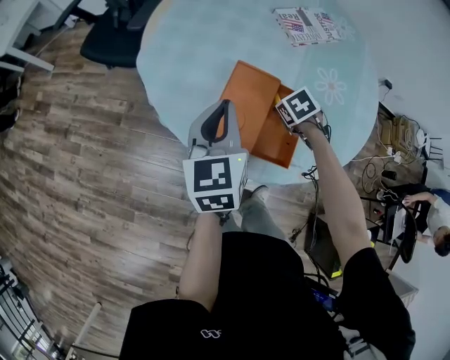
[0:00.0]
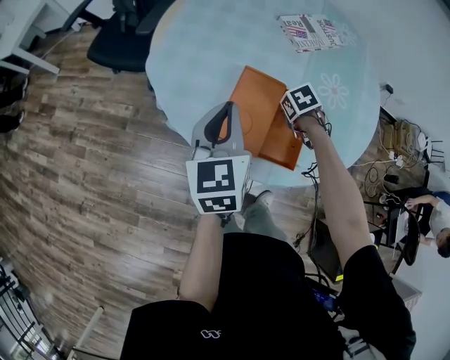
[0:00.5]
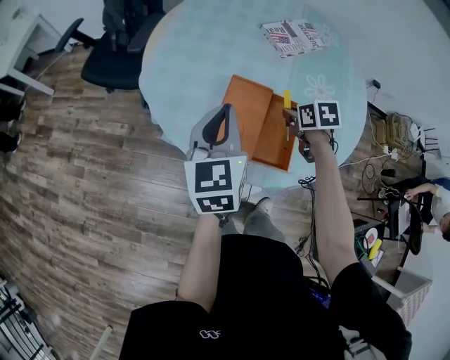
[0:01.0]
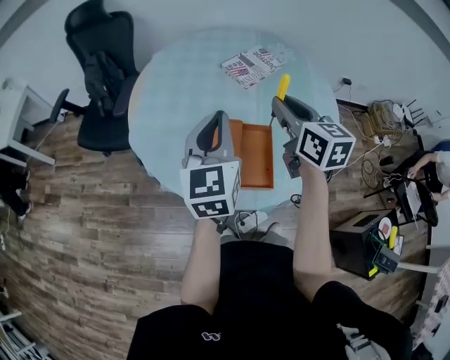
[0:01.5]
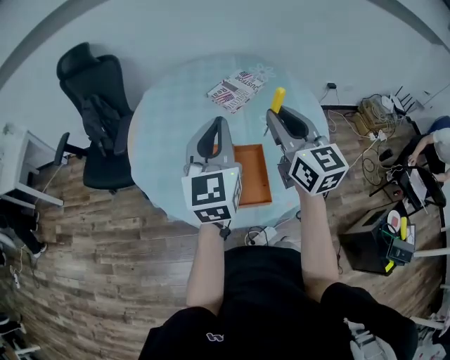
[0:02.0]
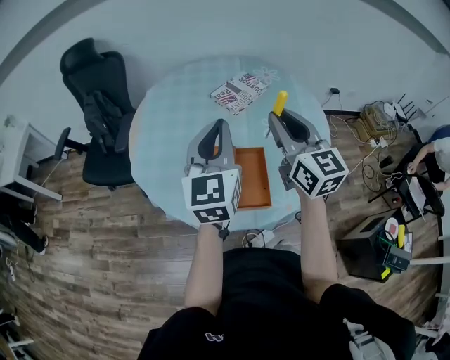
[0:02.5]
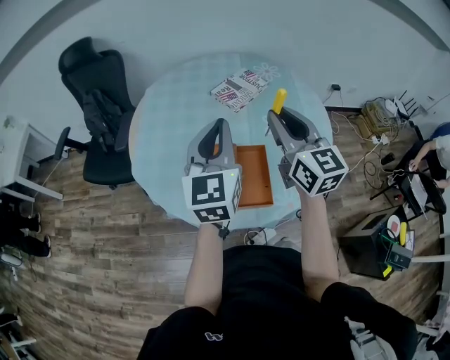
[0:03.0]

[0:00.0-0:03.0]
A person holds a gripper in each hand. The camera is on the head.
0:00.0 to 0:01.5: The right gripper travels upward by approximately 35 cm, and tips its fingers upward by roughly 60 degrees. Meanwhile the left gripper heads upward, covering about 15 cm, and changes its angle by roughly 20 degrees.
0:01.5 to 0:03.0: The left gripper ends up roughly 5 cm from where it was; the right gripper travels upward by about 5 cm.

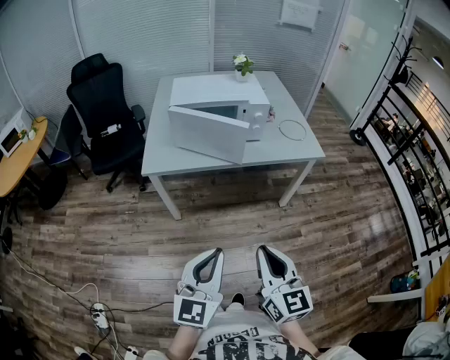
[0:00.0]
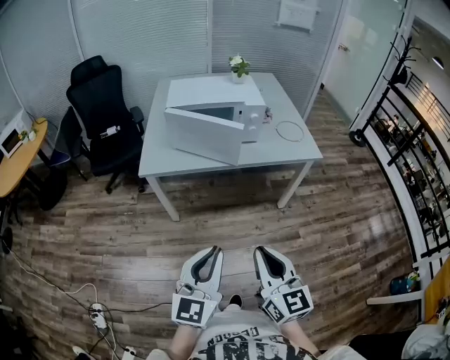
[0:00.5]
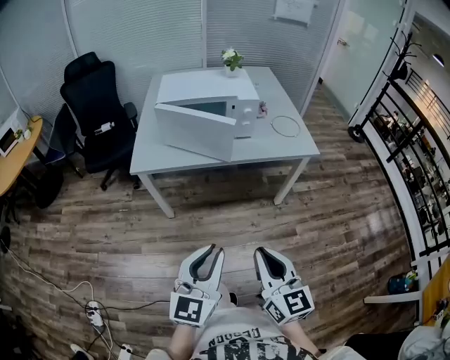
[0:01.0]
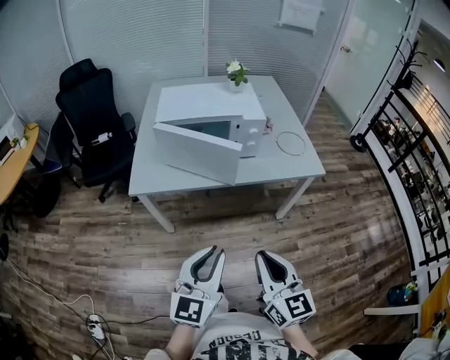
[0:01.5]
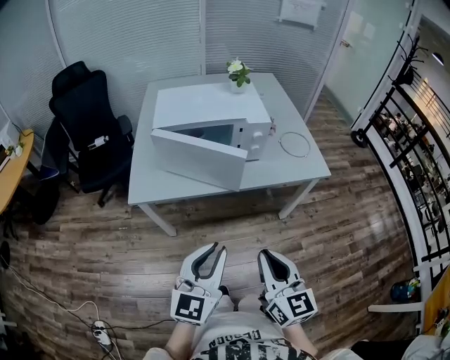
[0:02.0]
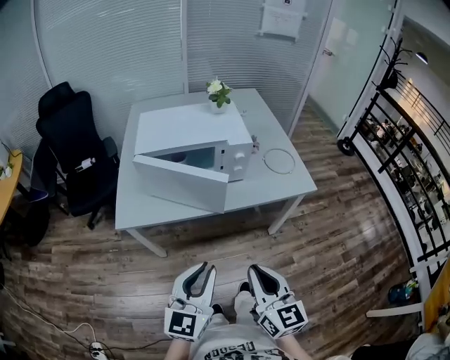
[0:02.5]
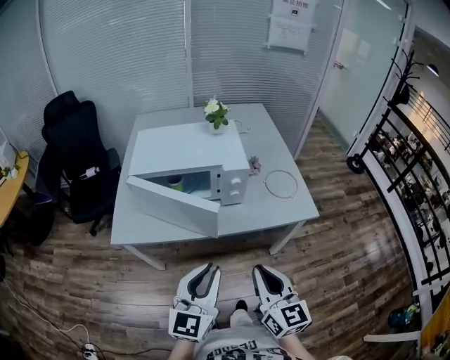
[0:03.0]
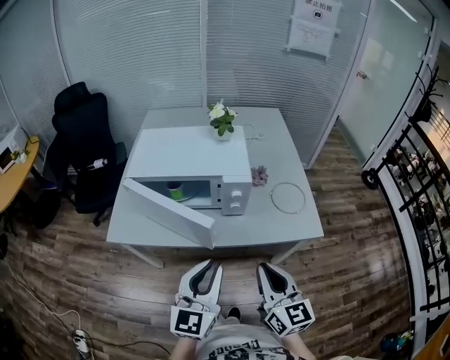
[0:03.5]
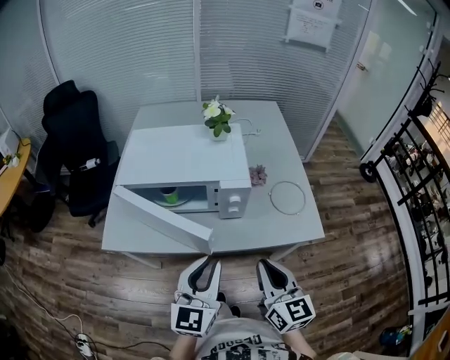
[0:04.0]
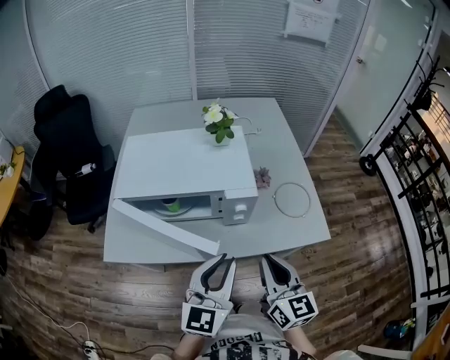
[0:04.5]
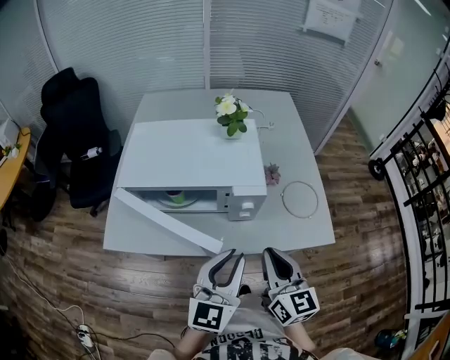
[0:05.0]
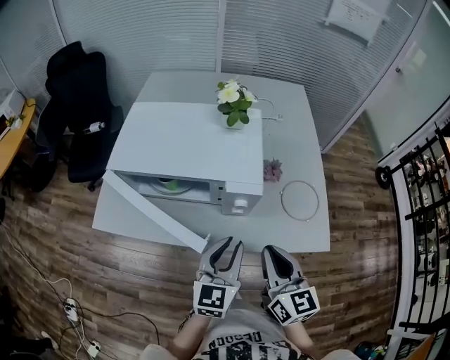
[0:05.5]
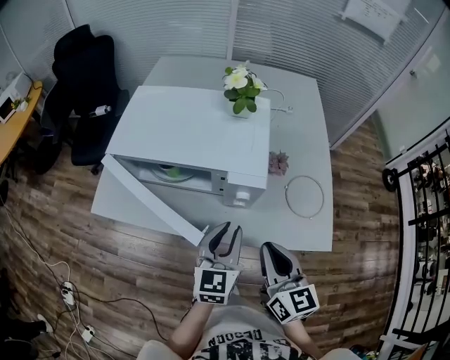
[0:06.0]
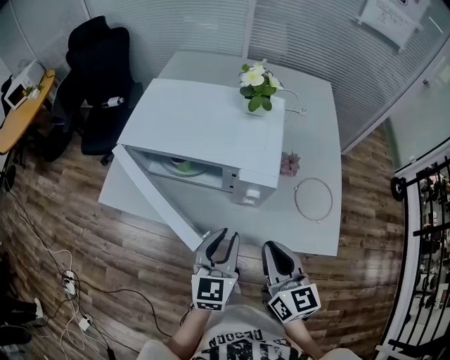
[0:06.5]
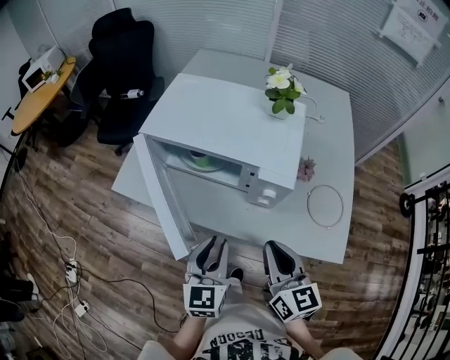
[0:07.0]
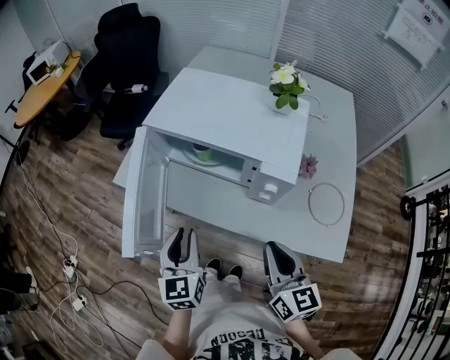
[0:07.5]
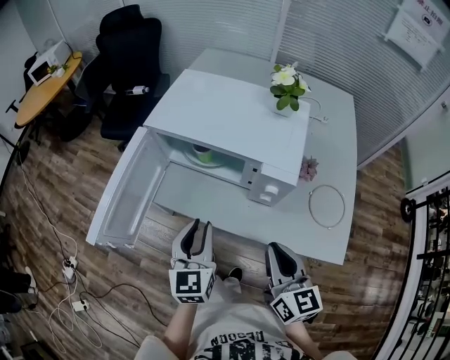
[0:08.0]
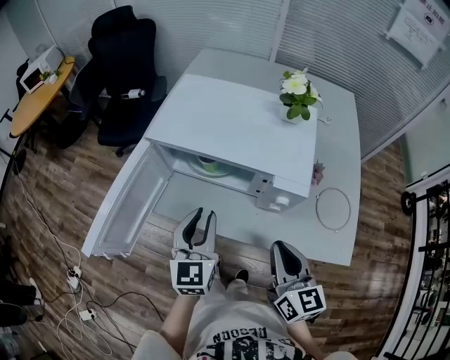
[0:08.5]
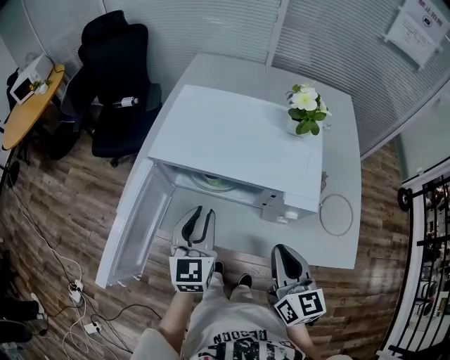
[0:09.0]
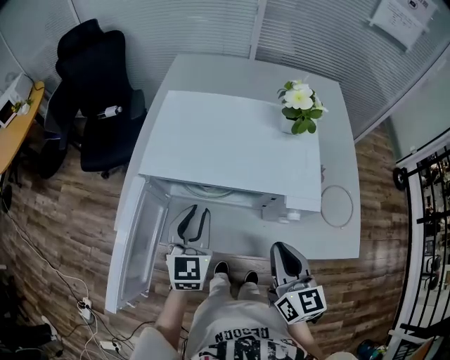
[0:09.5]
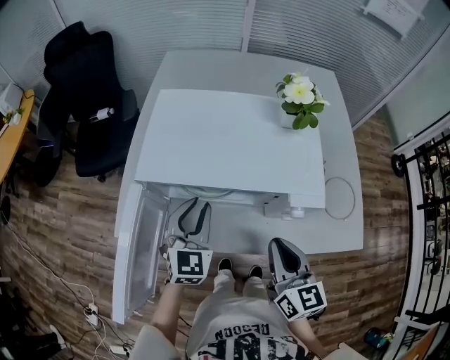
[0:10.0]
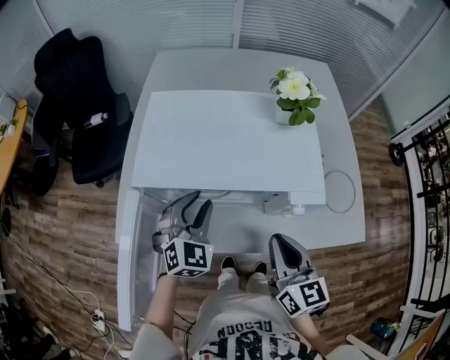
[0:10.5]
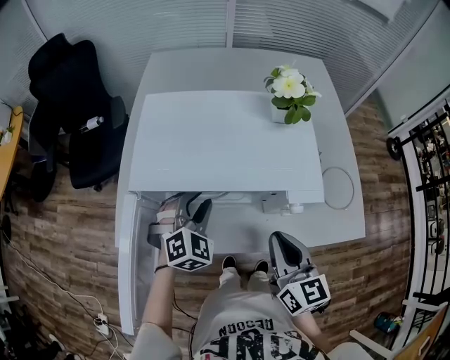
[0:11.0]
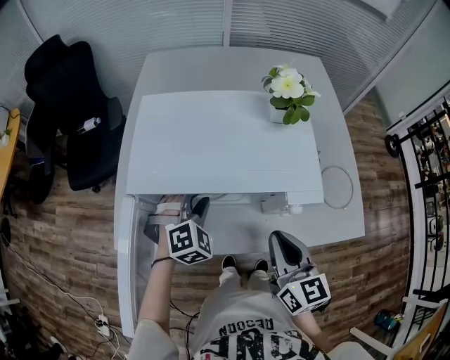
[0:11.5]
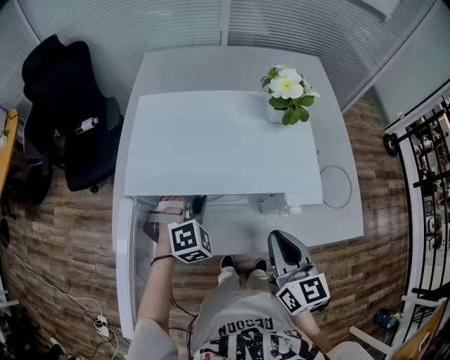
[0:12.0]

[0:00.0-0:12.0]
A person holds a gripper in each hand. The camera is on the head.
0:00.0 to 0:02.0: Both grippers travel together forward, about 15 cm.
0:02.0 to 0:04.0: The grippers both shift forward and to the right by about 25 cm.
0:04.0 to 0:06.0: The right gripper shifts roughly 10 cm forward; the left gripper goes some 15 cm forward, downward and to the right.
0:06.0 to 0:08.0: The left gripper moves to the left, roughly 15 cm, and turns by approximately 20 degrees.
0:08.0 to 0:10.0: The left gripper is displaced forward by approximately 15 cm, and turns by about 30 degrees, while the right gripper travels forward and to the left by roughly 10 cm.
0:10.0 to 0:12.0: The left gripper goes about 5 cm downward, and twists roughly 50 degrees clockwise, seen from behind.

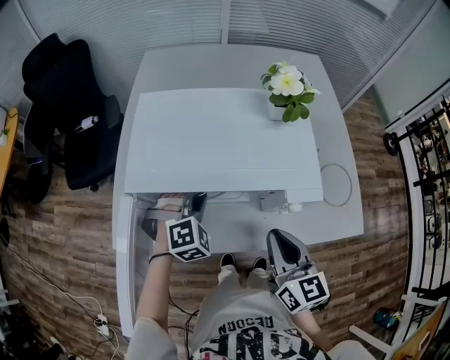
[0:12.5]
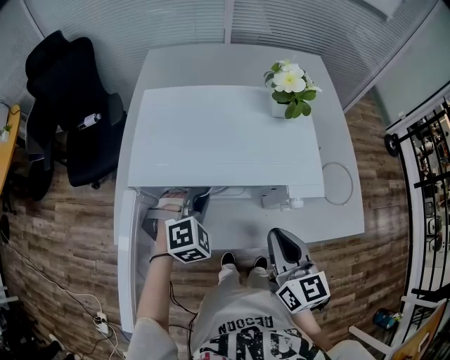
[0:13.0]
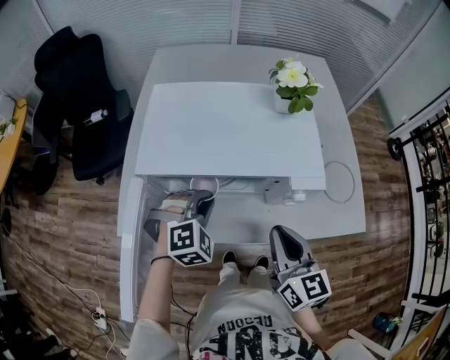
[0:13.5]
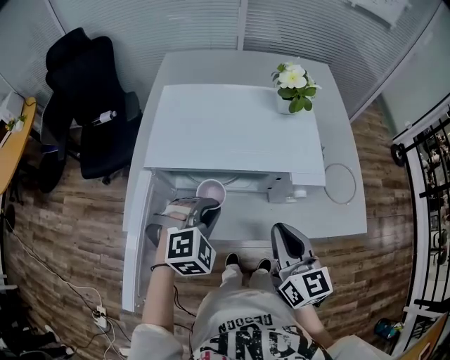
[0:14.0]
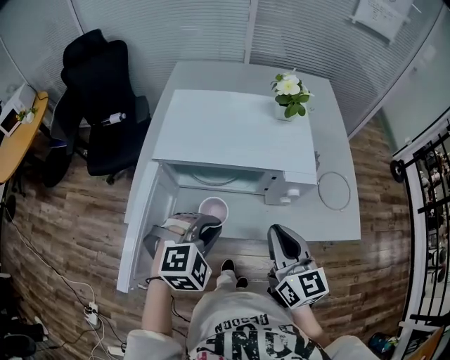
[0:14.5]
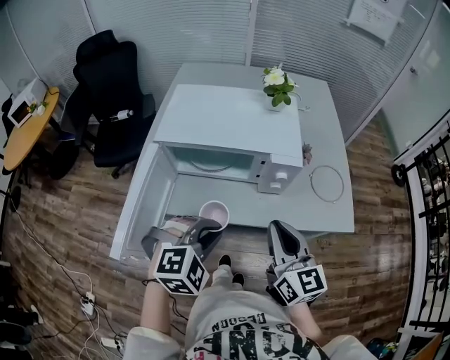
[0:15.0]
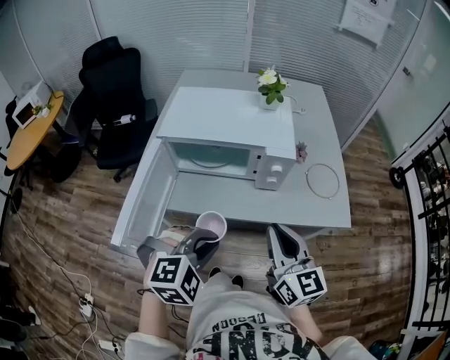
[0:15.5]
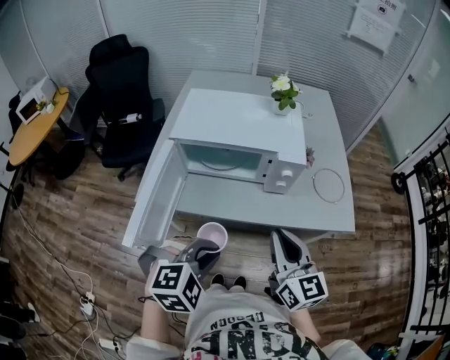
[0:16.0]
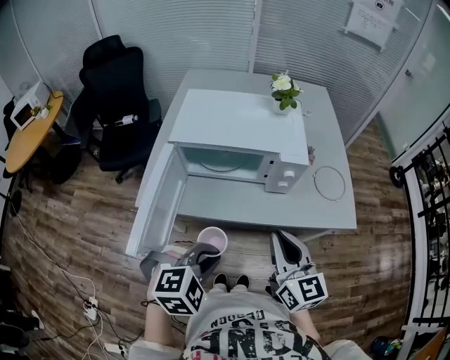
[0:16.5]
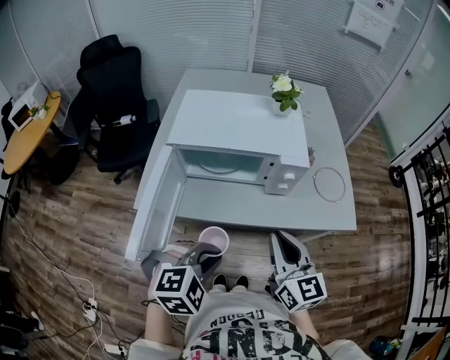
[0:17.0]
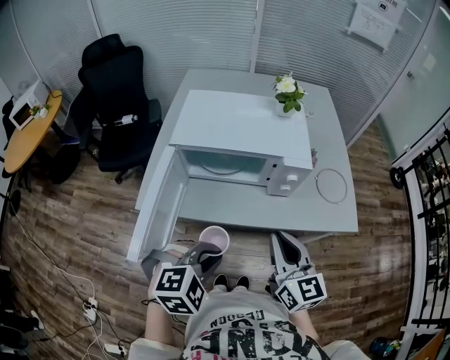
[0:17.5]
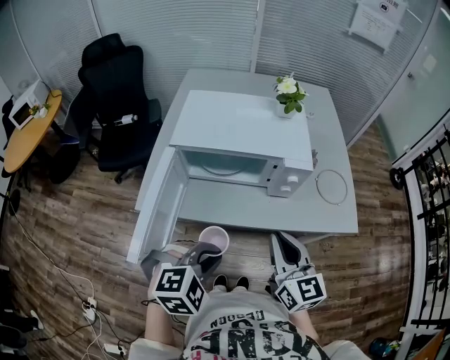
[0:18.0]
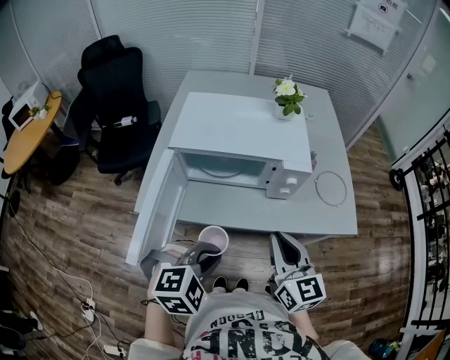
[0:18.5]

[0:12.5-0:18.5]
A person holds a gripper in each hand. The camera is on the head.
0:12.5 to 0:14.5: The left gripper goes about 20 cm backward and upward; the right gripper moves backward, about 5 cm.
0:14.5 to 0:16.5: The left gripper heads backward, covering approximately 15 cm, while the right gripper moves backward, about 10 cm.
0:16.5 to 0:18.5: The grippers stay close to where they were, moving slightly.

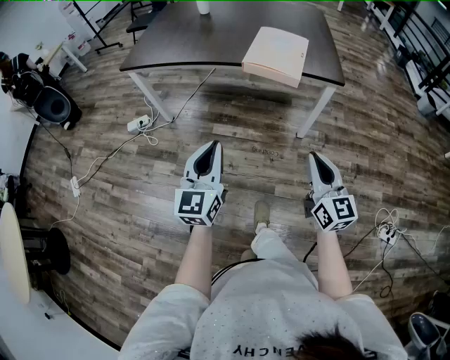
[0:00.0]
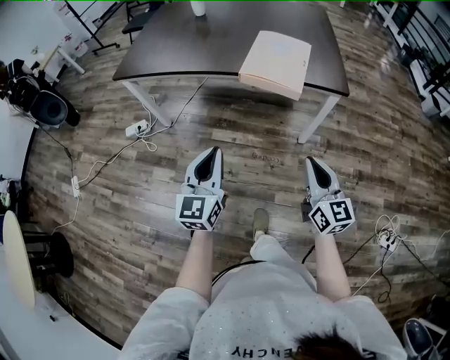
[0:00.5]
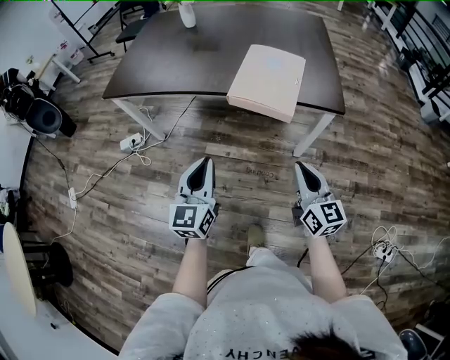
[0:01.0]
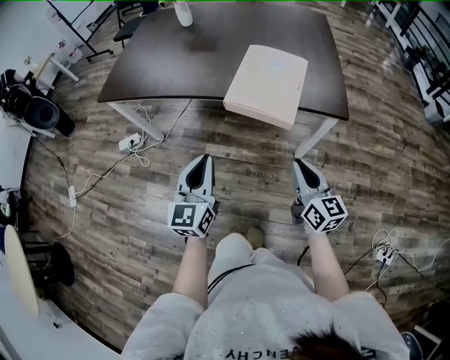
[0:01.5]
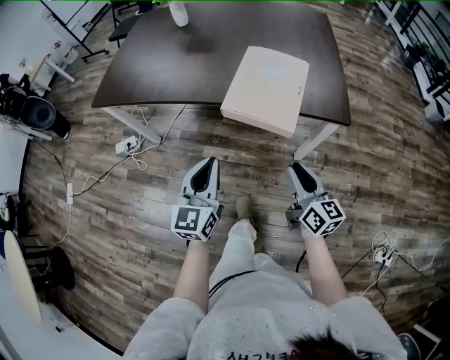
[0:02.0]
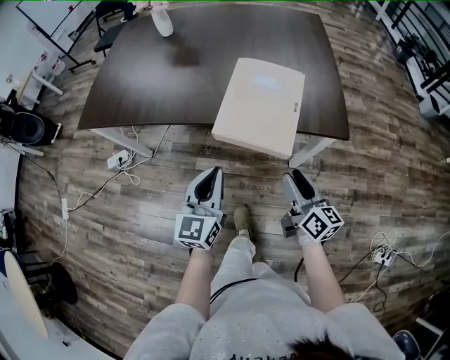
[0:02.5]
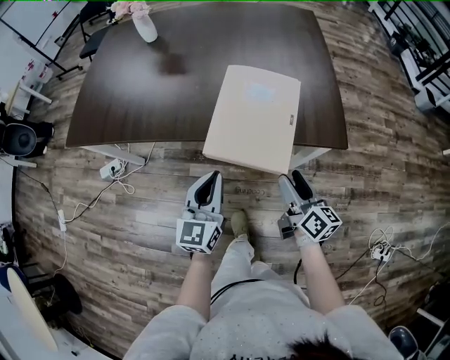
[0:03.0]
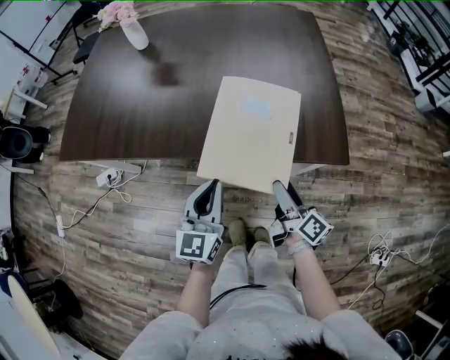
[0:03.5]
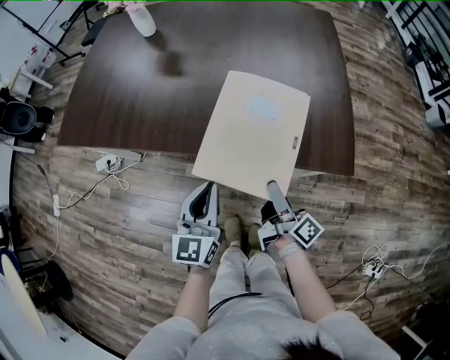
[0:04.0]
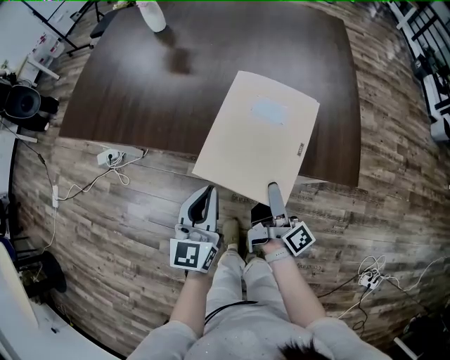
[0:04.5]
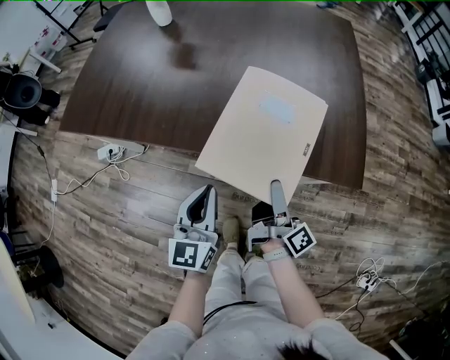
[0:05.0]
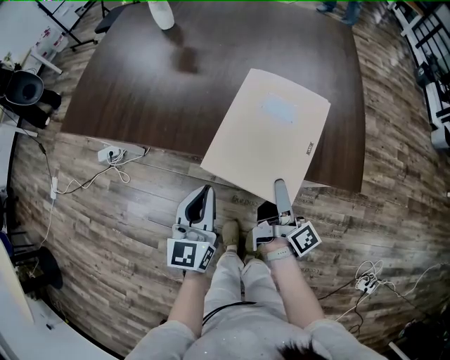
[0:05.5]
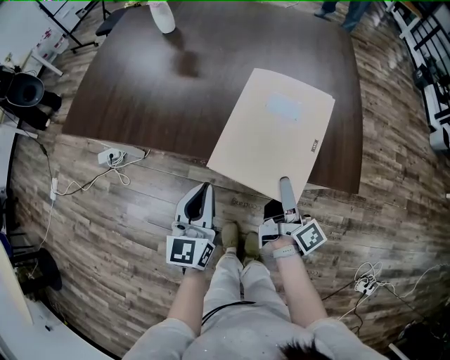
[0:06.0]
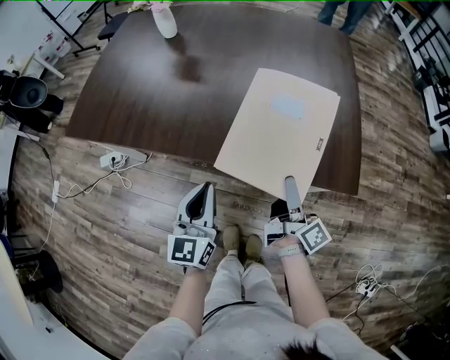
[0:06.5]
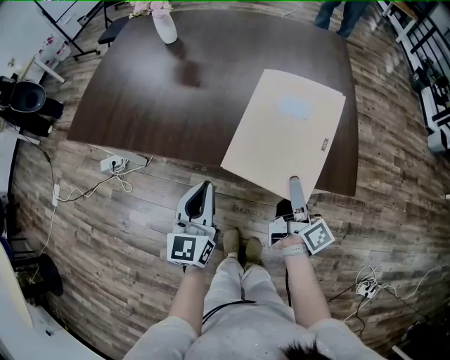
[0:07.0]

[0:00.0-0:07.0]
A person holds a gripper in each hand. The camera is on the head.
0:00.0 to 0:02.0: Both grippers travel together forward, approximately 30 cm. The right gripper turns by approximately 20 degrees.
0:02.0 to 0:03.5: Both grippers travel together forward, some 20 cm. The right gripper rotates about 40 degrees, and opens its fingers.
0:03.5 to 0:05.0: The right gripper changes place by some 5 cm, and turns by approximately 20 degrees.
0:05.0 to 0:07.0: The right gripper moves upward, approximately 5 cm.
